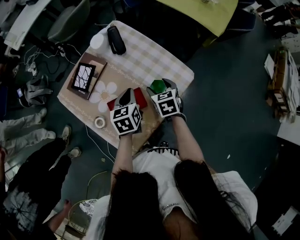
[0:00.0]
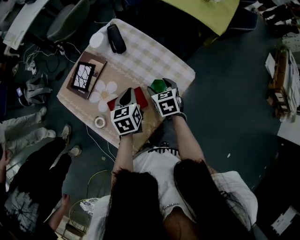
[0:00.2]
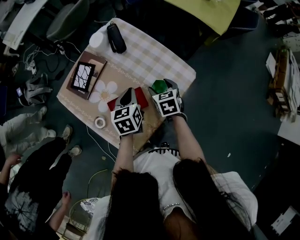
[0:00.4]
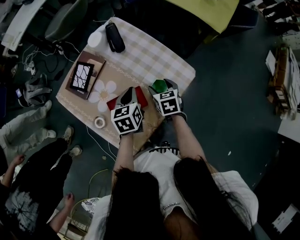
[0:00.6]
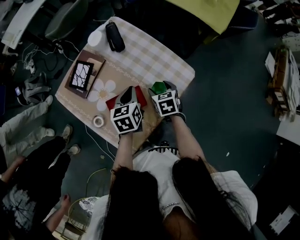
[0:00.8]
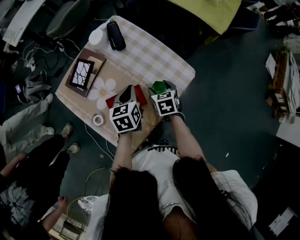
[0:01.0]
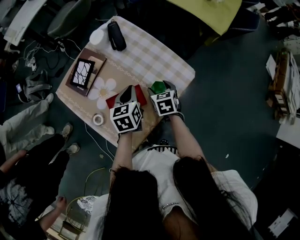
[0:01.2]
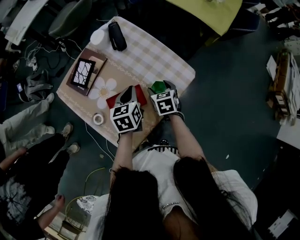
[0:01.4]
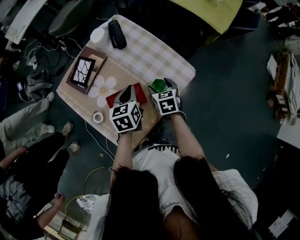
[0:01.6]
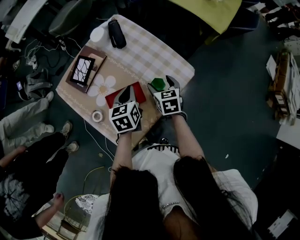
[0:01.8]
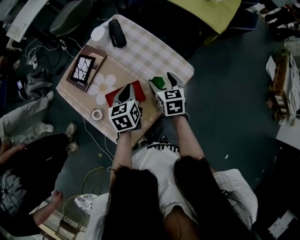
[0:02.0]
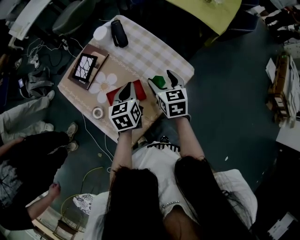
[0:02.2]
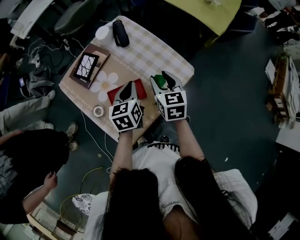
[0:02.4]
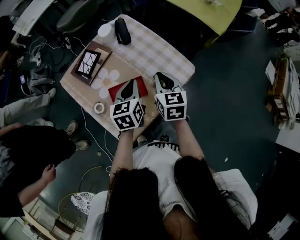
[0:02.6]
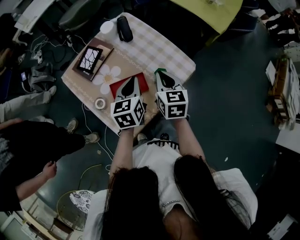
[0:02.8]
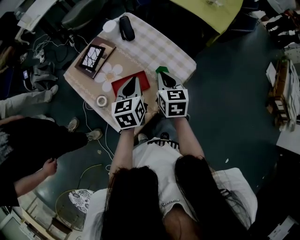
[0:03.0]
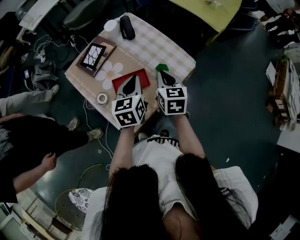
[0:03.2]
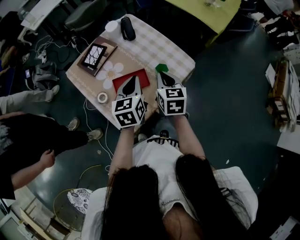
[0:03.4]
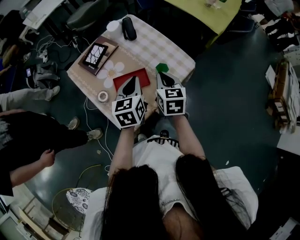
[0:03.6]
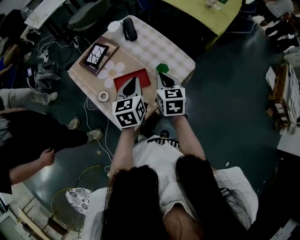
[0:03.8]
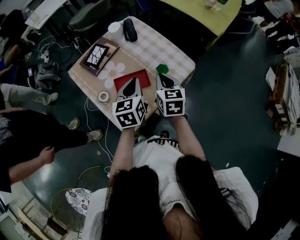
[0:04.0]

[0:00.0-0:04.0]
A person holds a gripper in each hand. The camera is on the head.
0:00.0 to 0:01.4: The grippers stay close to where they were, moving slightly.
0:01.4 to 0:02.6: The left gripper shifts roughly 5 cm upward. The right gripper travels upward by some 15 cm, changes its angle by roughly 20 degrees, and closes up.
0:02.6 to 0:04.0: The grippers both shift backward by roughly 5 cm.

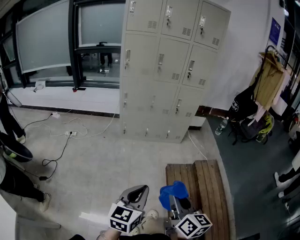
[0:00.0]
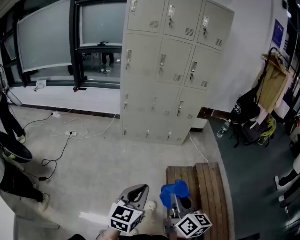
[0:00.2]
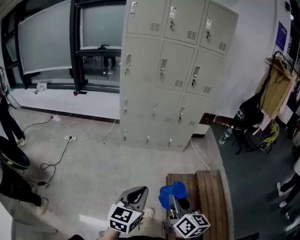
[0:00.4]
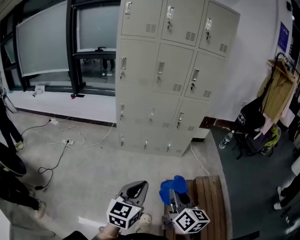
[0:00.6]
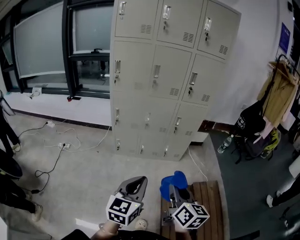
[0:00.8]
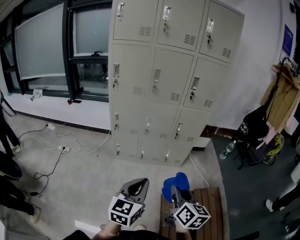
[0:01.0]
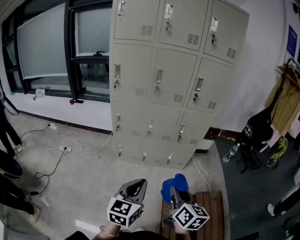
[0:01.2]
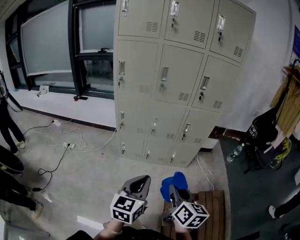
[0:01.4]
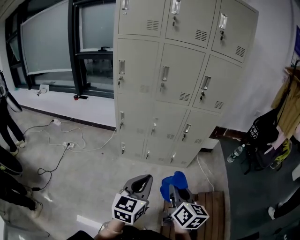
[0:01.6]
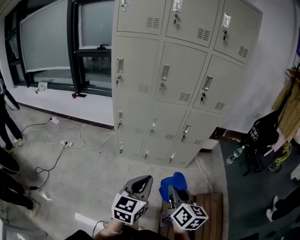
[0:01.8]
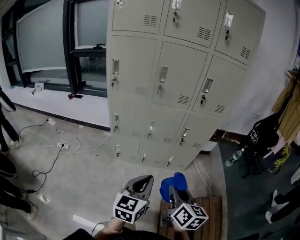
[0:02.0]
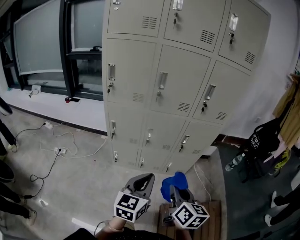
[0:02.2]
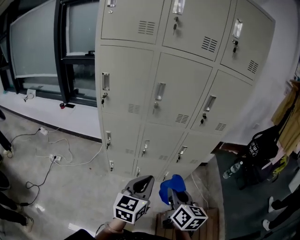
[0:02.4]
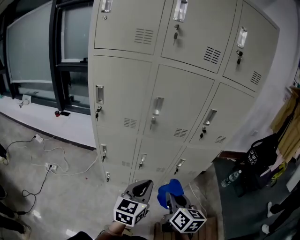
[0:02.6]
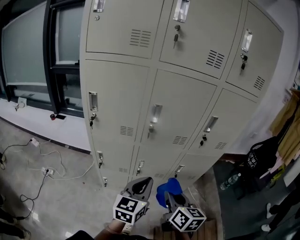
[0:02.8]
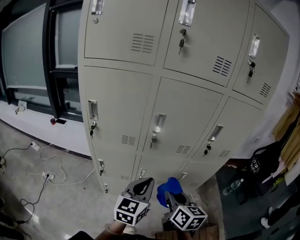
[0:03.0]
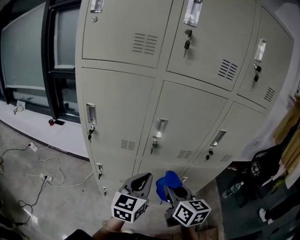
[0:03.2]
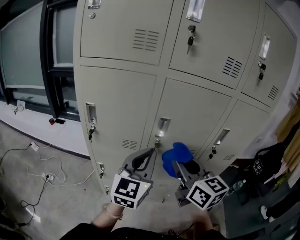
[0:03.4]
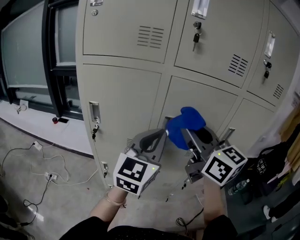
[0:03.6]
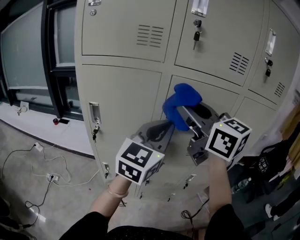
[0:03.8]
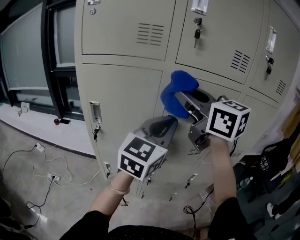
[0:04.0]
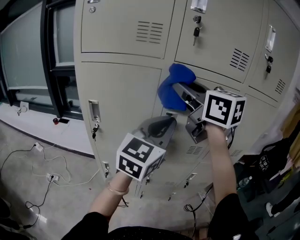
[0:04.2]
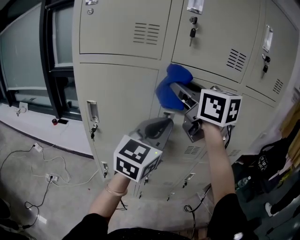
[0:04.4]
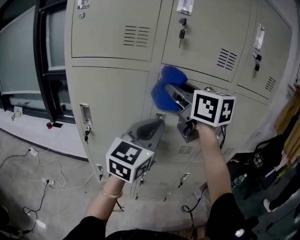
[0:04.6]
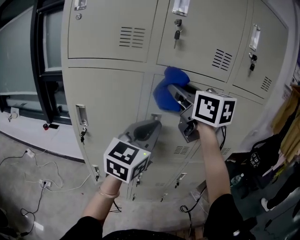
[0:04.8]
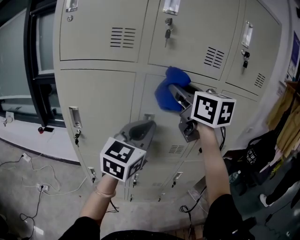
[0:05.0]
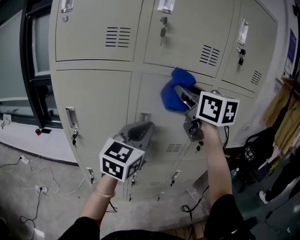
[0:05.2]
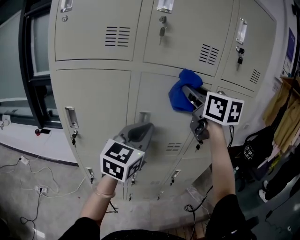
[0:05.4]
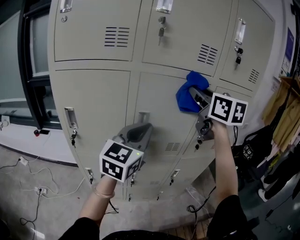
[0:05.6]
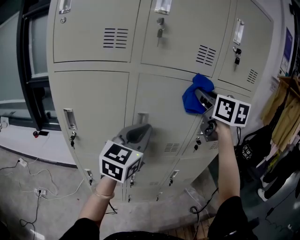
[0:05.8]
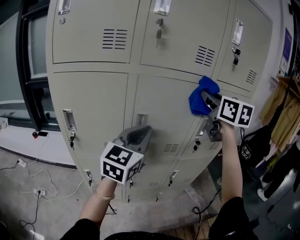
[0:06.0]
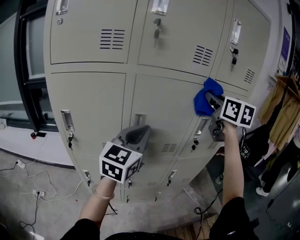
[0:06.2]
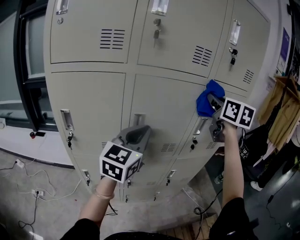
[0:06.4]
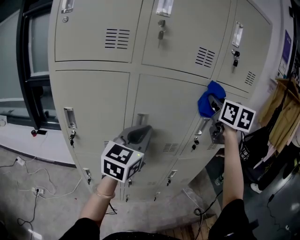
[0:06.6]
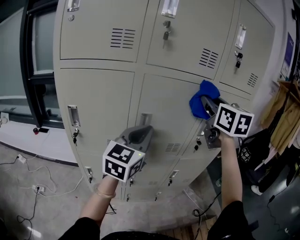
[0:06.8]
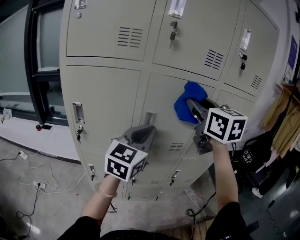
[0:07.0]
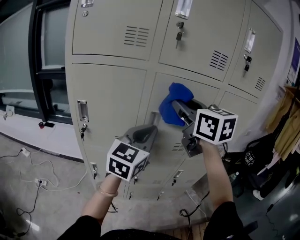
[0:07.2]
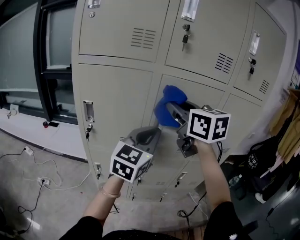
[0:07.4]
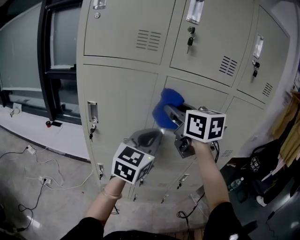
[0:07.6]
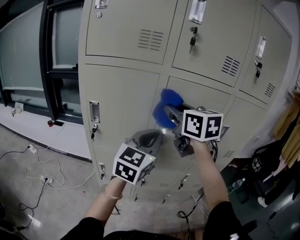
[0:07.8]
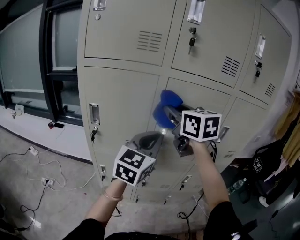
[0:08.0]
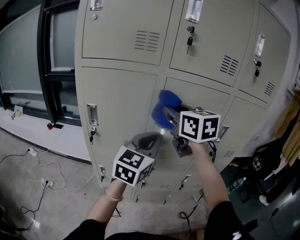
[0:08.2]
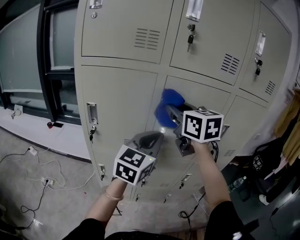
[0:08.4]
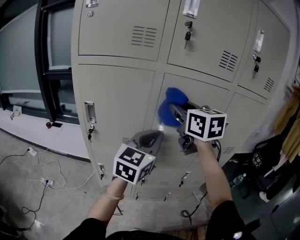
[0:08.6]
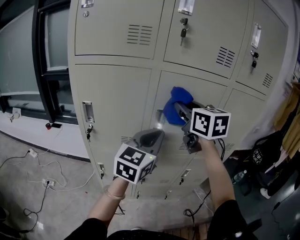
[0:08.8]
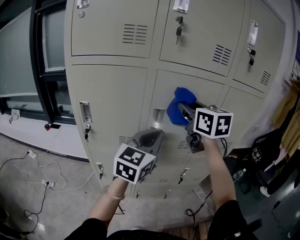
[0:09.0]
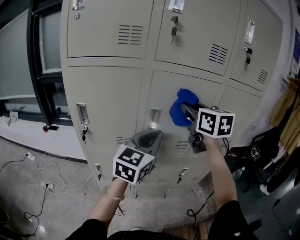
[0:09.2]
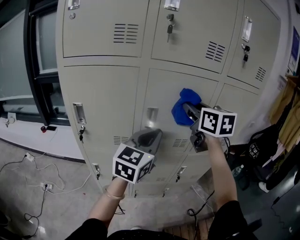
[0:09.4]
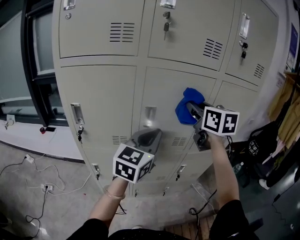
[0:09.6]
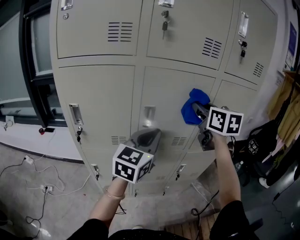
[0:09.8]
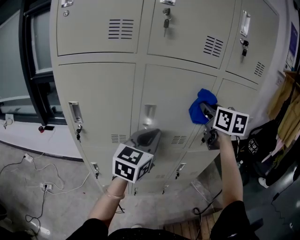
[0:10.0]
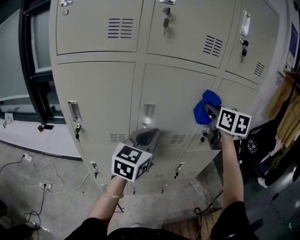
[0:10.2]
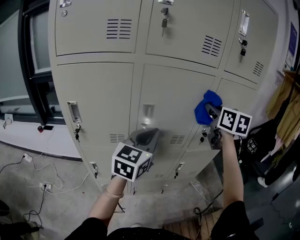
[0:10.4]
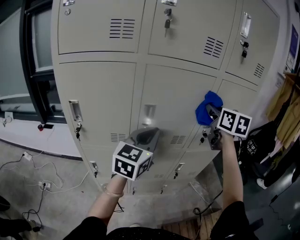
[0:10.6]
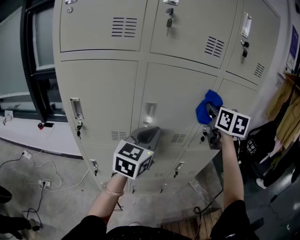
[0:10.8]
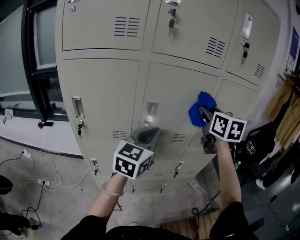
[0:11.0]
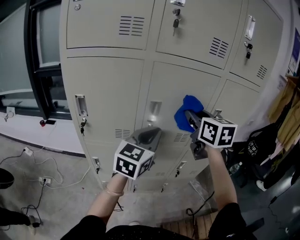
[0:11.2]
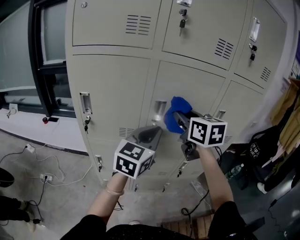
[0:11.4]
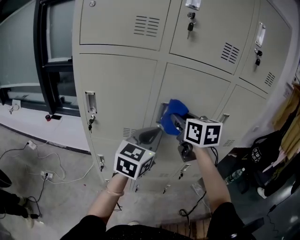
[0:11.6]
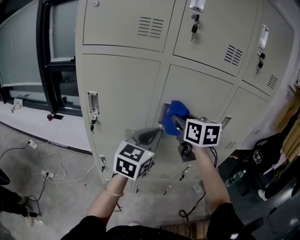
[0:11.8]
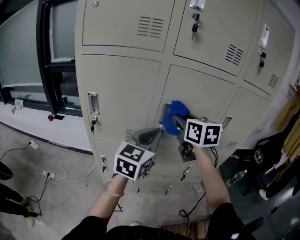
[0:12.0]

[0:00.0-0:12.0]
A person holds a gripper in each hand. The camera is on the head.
0:00.0 to 0:01.6: The grippers both shift forward by approximately 40 cm.
0:01.6 to 0:03.0: The two grippers go some 40 cm forward.
0:03.0 to 0:04.4: The left gripper heads upward and forward, covering some 25 cm, and swivels some 20 degrees. Meanwhile the right gripper heads upward and forward, covering about 40 cm, and turns by some 40 degrees.
0:04.4 to 0:06.0: The right gripper moves to the right, some 20 cm, and rotates roughly 30 degrees.
0:06.0 to 0:07.6: The right gripper moves to the left, about 20 cm, and changes its angle by approximately 20 degrees.
0:07.6 to 0:09.0: The right gripper is displaced to the right by about 10 cm.
0:09.0 to 0:10.4: The right gripper goes some 15 cm to the right.
0:10.4 to 0:12.0: The left gripper heads to the left, covering approximately 5 cm, while the right gripper heads to the left, covering roughly 20 cm.

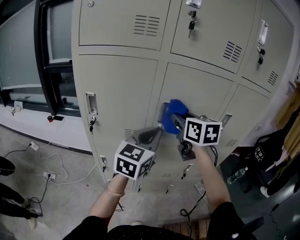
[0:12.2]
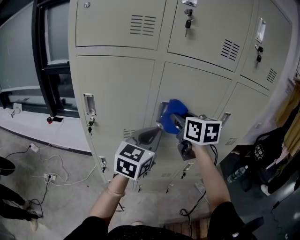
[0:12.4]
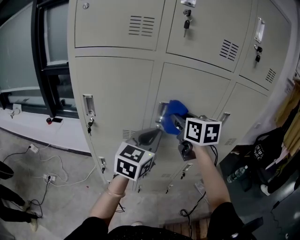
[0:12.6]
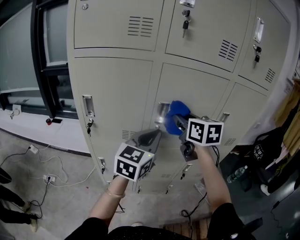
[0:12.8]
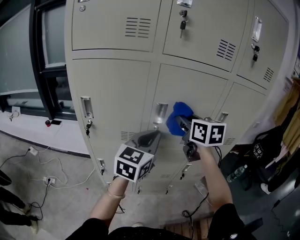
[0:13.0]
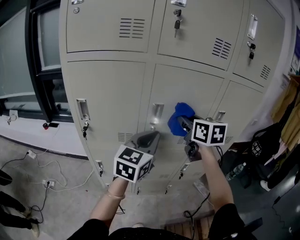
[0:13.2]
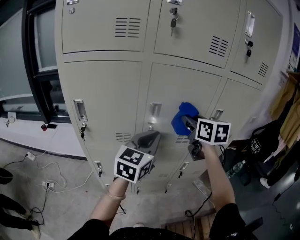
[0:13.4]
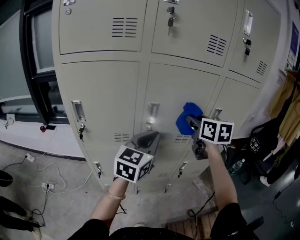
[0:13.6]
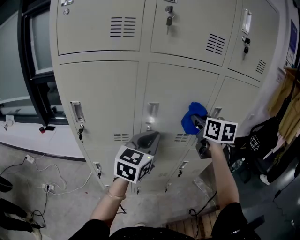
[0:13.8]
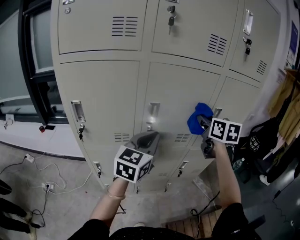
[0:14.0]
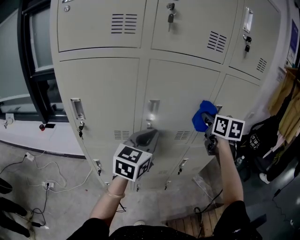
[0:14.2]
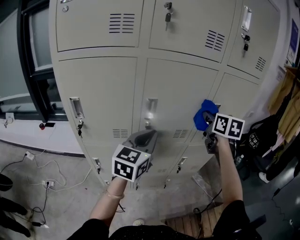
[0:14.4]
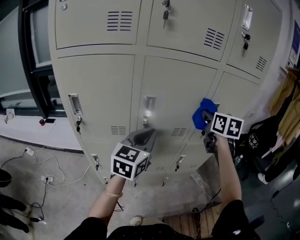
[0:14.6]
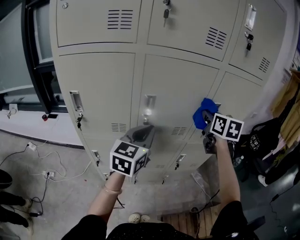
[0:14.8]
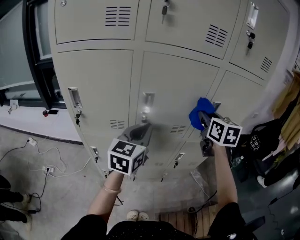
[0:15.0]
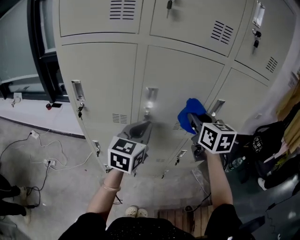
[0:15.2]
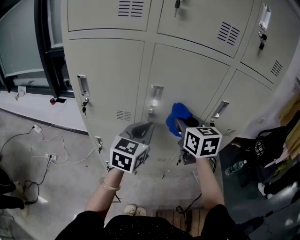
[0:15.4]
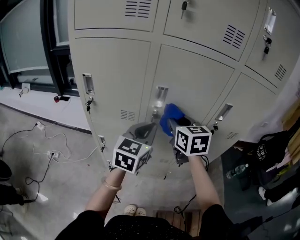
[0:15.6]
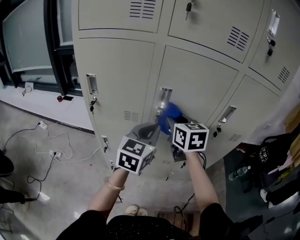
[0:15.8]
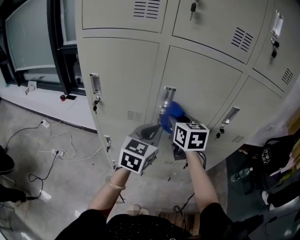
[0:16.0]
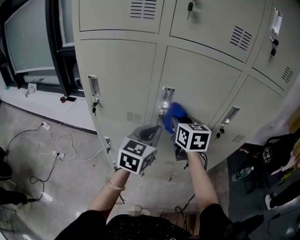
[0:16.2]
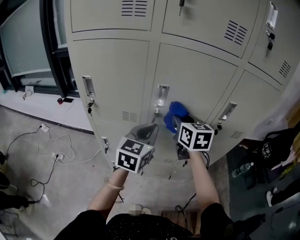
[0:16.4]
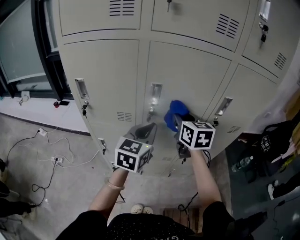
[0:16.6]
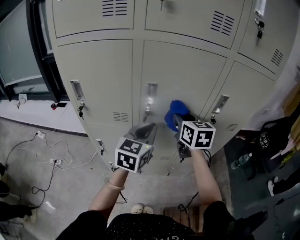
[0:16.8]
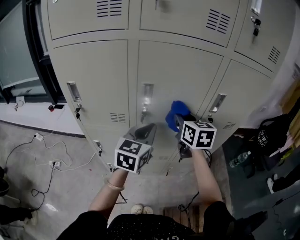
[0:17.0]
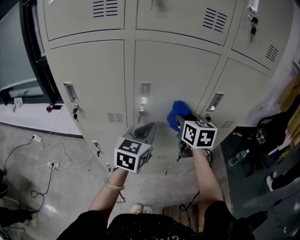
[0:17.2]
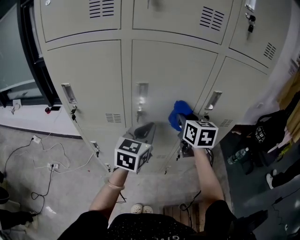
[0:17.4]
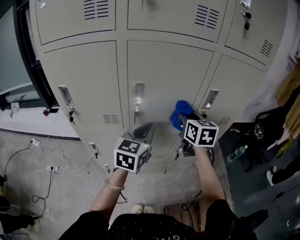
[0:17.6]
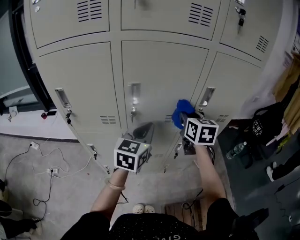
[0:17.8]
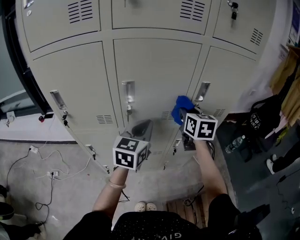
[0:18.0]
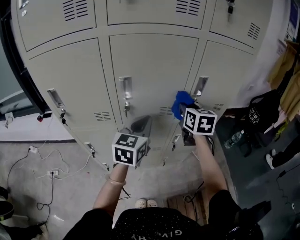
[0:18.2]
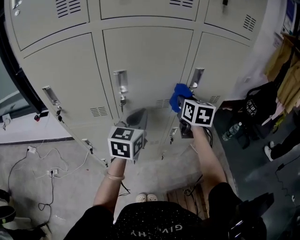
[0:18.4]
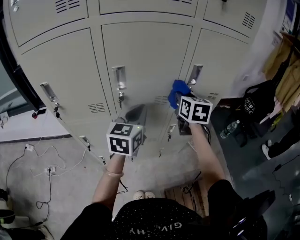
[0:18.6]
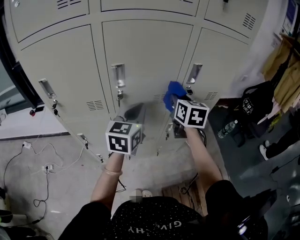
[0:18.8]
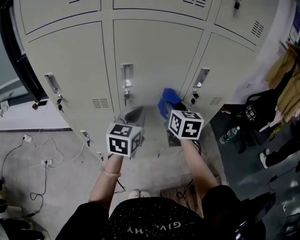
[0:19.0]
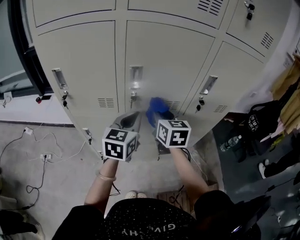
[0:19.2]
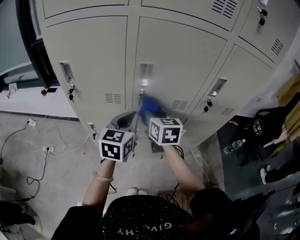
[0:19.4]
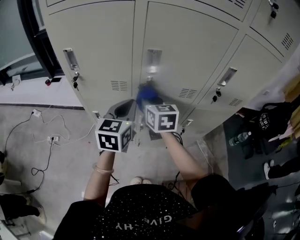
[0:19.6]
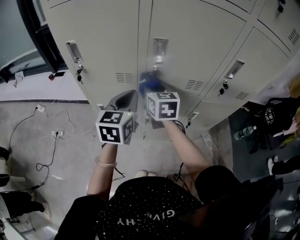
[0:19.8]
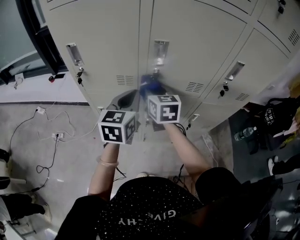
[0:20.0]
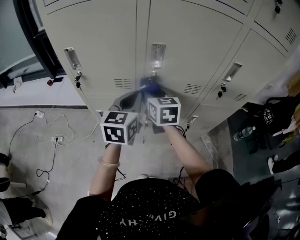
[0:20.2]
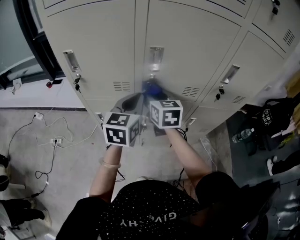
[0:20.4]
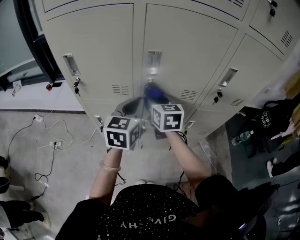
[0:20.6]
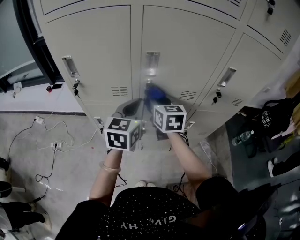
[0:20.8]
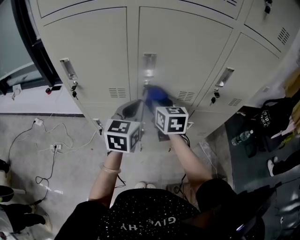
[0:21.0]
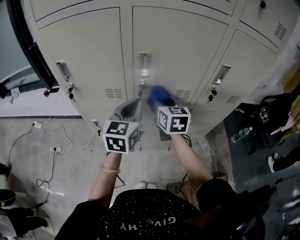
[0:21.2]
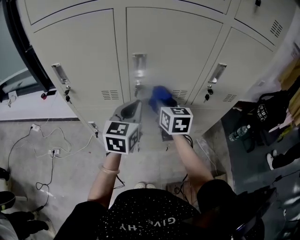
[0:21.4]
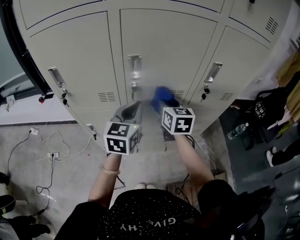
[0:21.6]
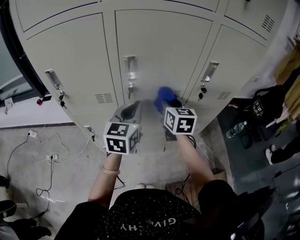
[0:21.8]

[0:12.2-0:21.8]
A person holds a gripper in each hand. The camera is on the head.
0:12.2 to 0:13.8: The right gripper goes approximately 15 cm to the right.
0:13.8 to 0:15.4: The right gripper heads to the left and backward, covering approximately 10 cm.
0:15.4 to 0:17.0: The right gripper moves some 5 cm to the left and comes back.
0:17.0 to 0:18.6: The right gripper travels to the right by approximately 10 cm.
0:18.6 to 0:20.2: The right gripper goes some 25 cm to the left, and rotates approximately 20 degrees. Meanwhile the left gripper shifts some 15 cm to the left.
0:20.2 to 0:21.8: The left gripper shifts roughly 5 cm to the right. The right gripper travels to the right by about 15 cm.
